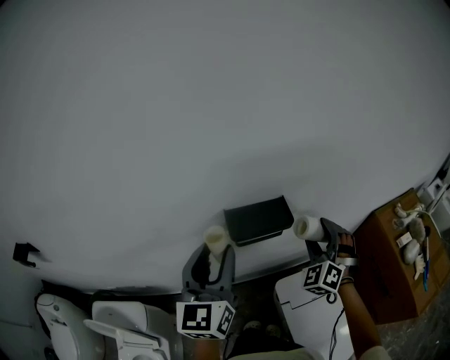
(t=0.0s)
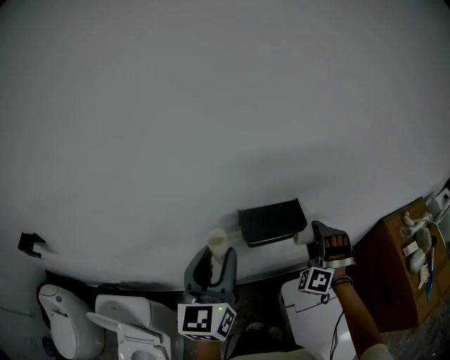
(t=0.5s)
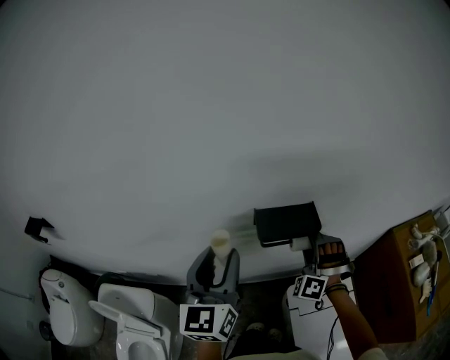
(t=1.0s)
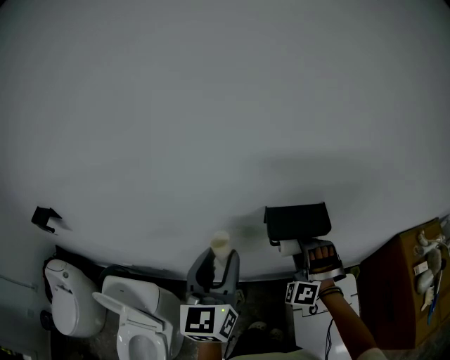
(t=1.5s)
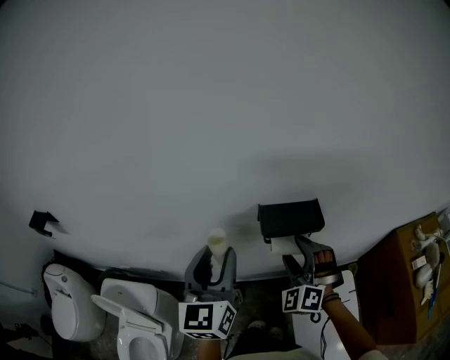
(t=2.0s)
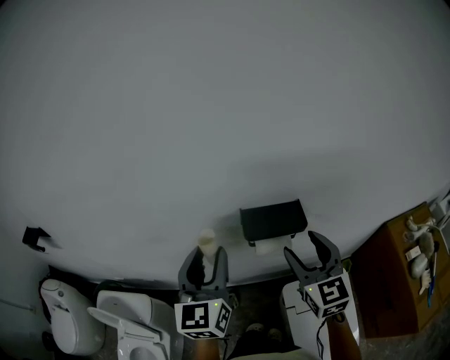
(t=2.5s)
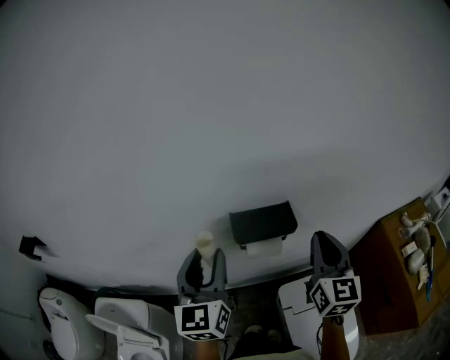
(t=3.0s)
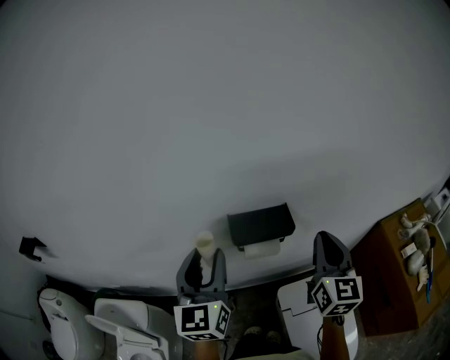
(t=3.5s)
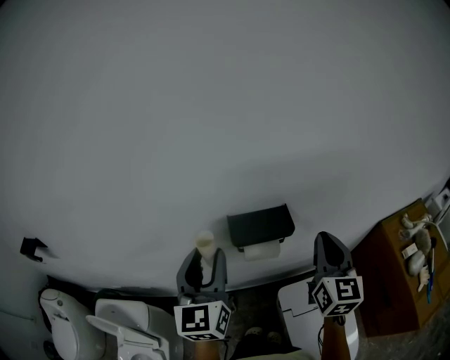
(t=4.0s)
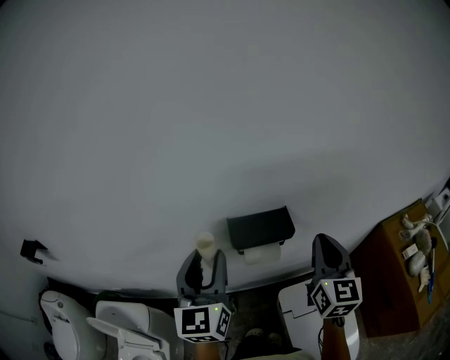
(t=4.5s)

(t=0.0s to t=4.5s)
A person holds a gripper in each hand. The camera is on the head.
t=0.0s - t=2.0s: The left gripper is displaced to the left by about 5 cm, while the right gripper is displaced to the left by some 15 cm, and rotates approximately 20 degrees.
t=2.0s - t=4.5s: The right gripper moves to the right and upward, roughly 20 cm, rolls clockwise, seen from behind, by some 70 degrees, and closes its fingers, while the left gripper moves about 5 cm.

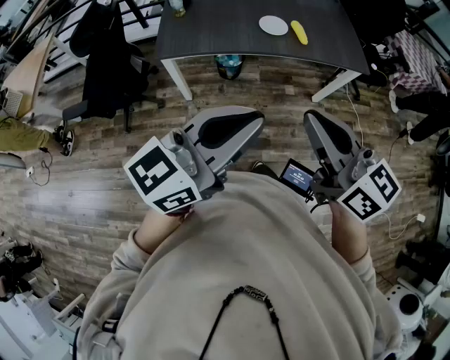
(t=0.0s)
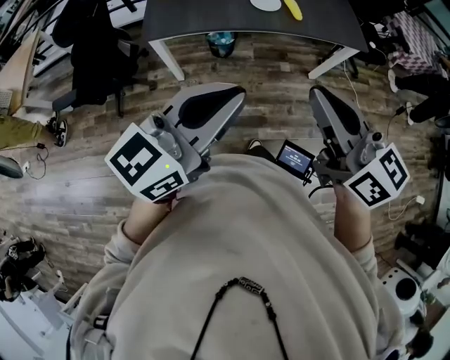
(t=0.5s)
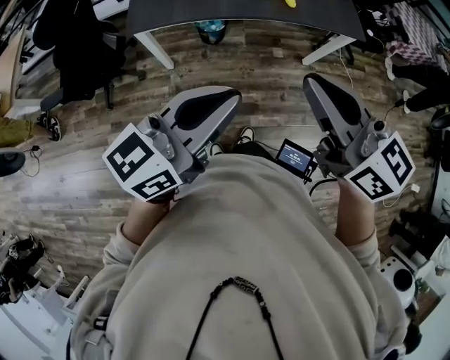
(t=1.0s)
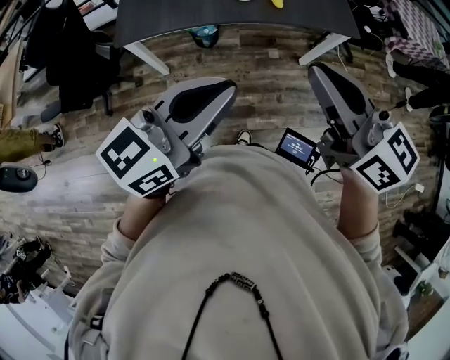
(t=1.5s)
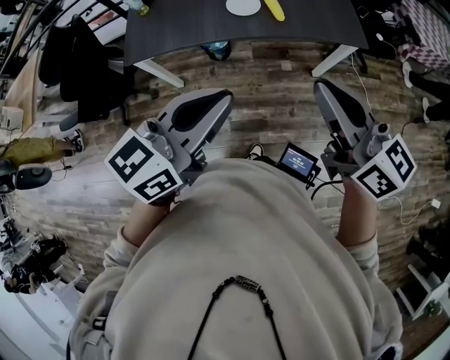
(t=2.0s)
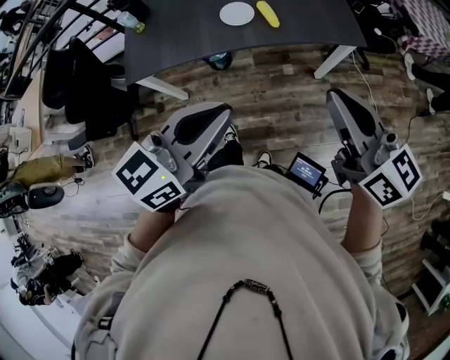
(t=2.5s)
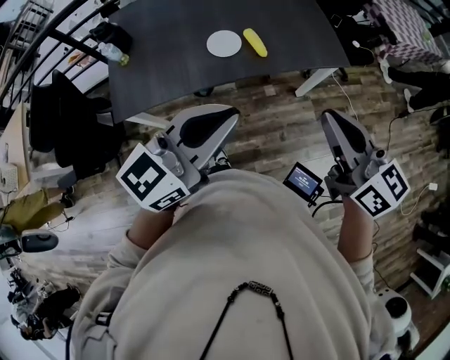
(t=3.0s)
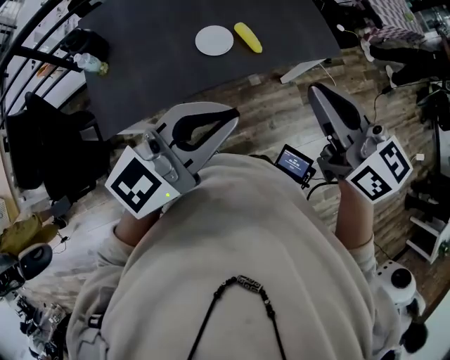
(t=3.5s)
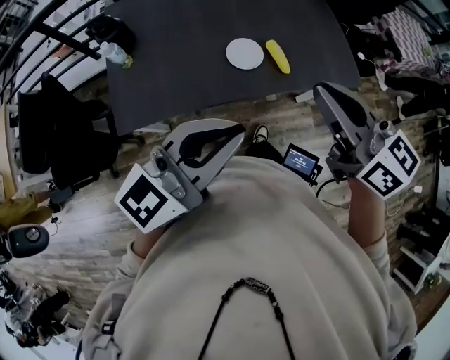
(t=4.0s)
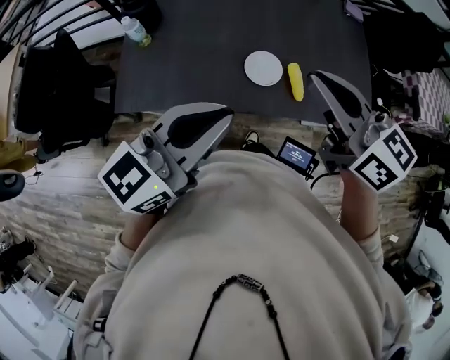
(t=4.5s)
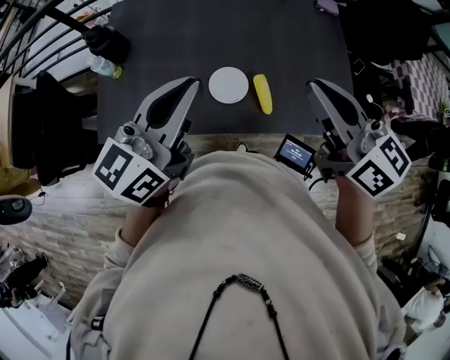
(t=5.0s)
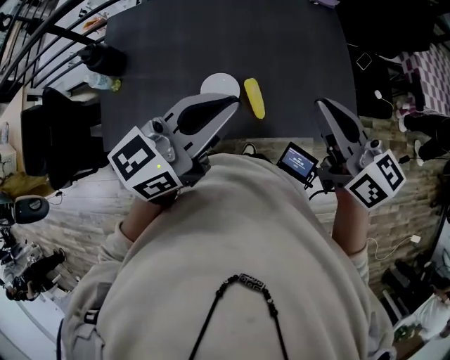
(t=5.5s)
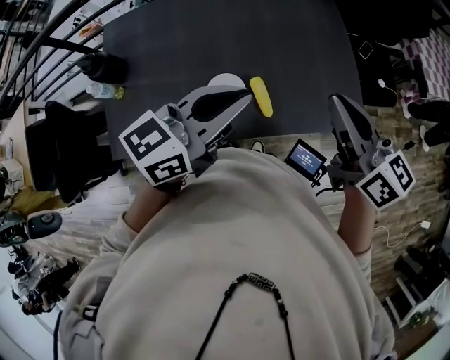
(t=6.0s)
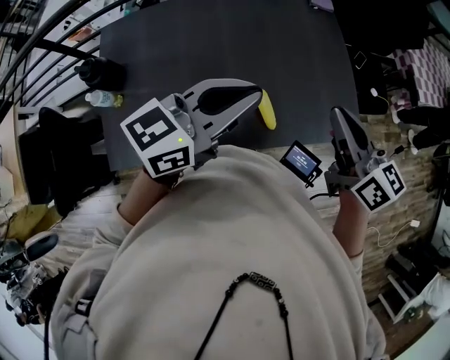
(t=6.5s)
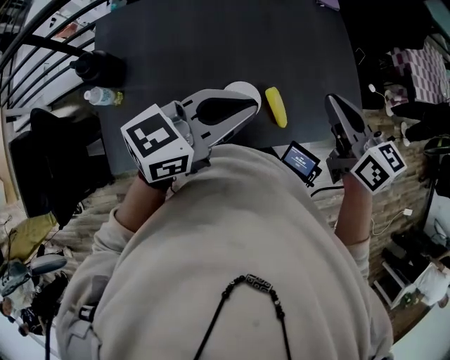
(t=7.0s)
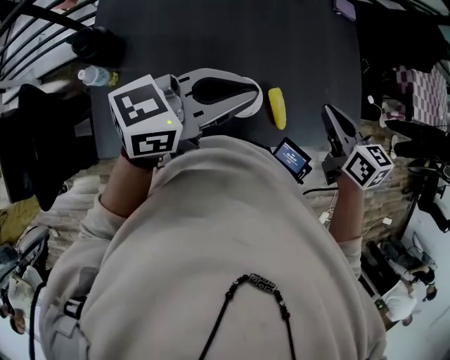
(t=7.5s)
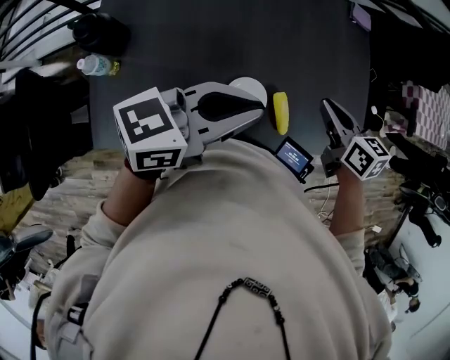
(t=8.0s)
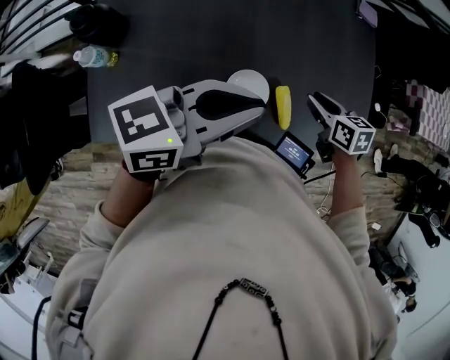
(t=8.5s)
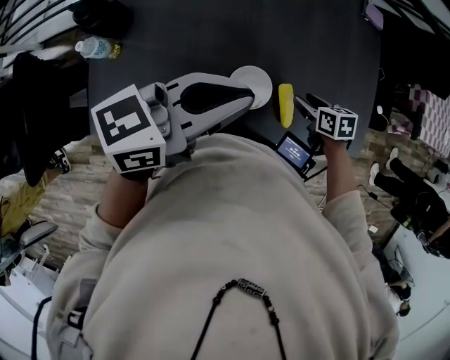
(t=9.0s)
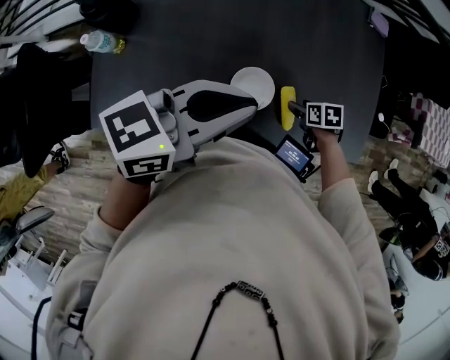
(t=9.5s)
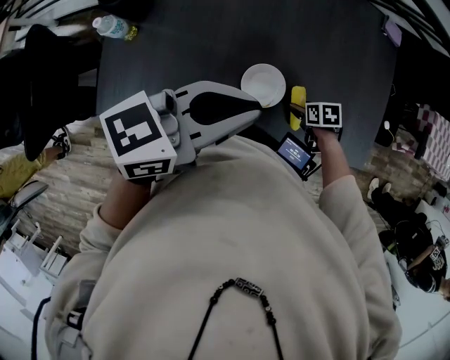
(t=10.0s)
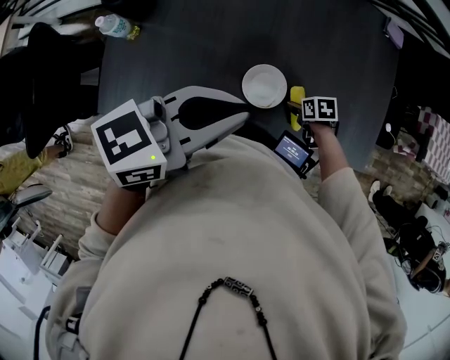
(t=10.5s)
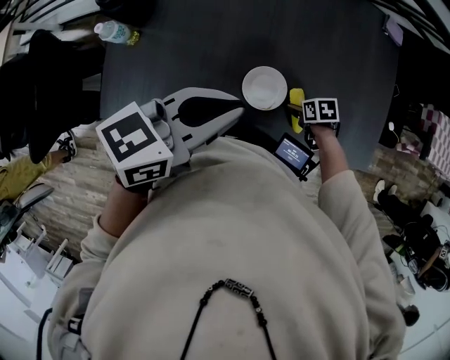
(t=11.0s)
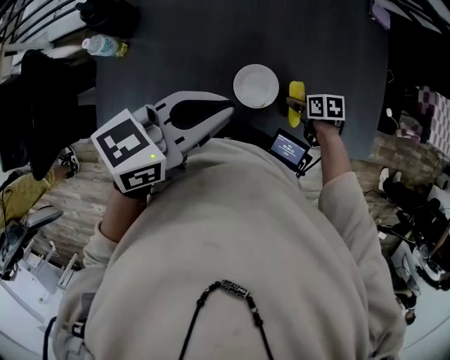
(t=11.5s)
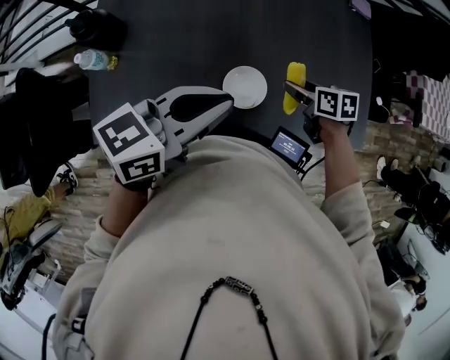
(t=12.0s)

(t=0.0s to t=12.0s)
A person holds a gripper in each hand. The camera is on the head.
t=0.0s - t=2.0s: The left gripper shifts some 15 cm forward and to the right, while the right gripper moves to the right and forward, about 20 cm.
t=2.0s - t=4.0s: The grippers both shift forward and to the left by roughly 25 cm.
t=4.0s - t=6.0s: Both grippers travel together forward and to the right, approximately 30 cm.
t=6.0s - t=8.0s: The left gripper travels to the left by about 15 cm. Meanwhile the right gripper goes about 25 cm downward, to the left and forward, and swivels about 30 degrees.
t=8.0s - t=10.0s: The right gripper travels downward by about 25 cm, tips its fingers downward by approximately 30 degrees, and opens.
t=10.0s - t=12.0s: The right gripper moves upward, about 15 cm, and turns by approximately 20 degrees.

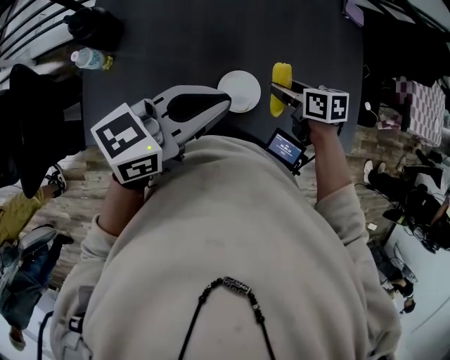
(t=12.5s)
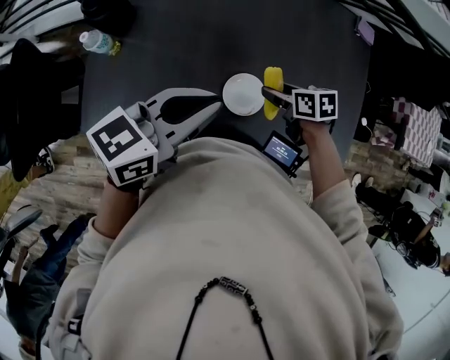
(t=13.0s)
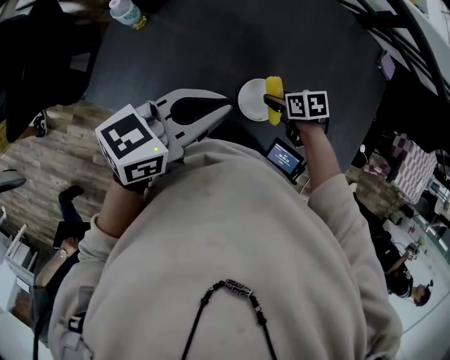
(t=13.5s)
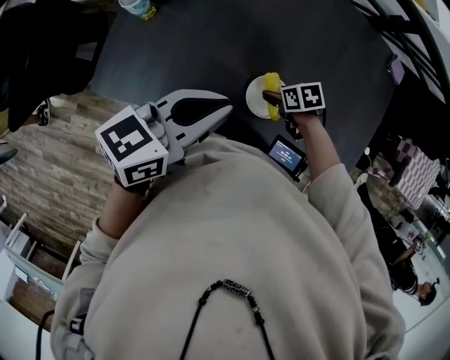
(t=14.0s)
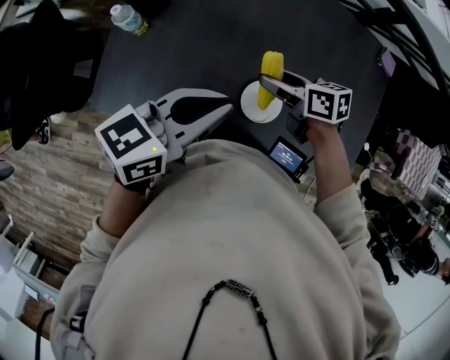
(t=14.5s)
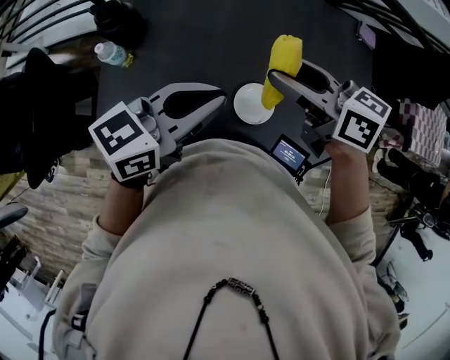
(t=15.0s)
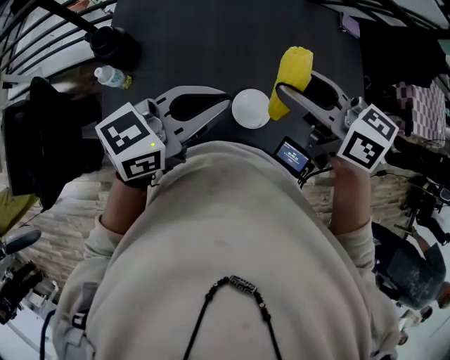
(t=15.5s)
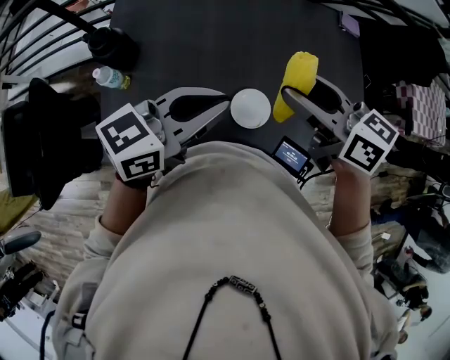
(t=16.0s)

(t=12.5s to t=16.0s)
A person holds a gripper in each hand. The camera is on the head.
t=12.5s - t=14.5s: The right gripper reaches some 10 cm downward, then returns, and changes its angle by some 20 degrees; the left gripper shifts by approximately 10 cm.
t=14.5s - t=16.0s: The right gripper is displaced upward by some 20 cm, and swivels some 30 degrees, while the left gripper changes place by some 5 cm.

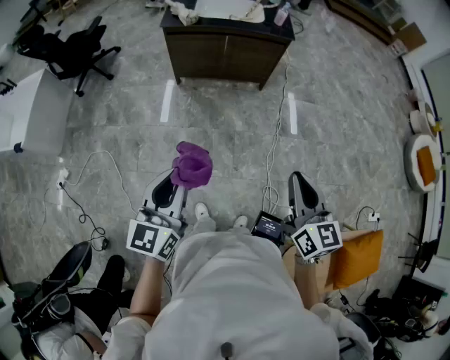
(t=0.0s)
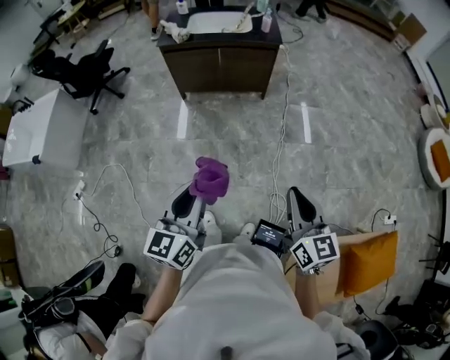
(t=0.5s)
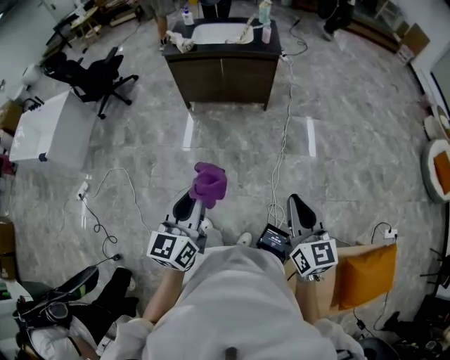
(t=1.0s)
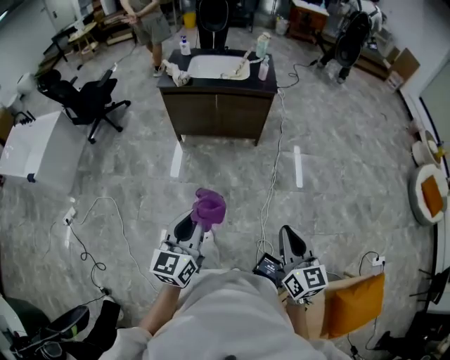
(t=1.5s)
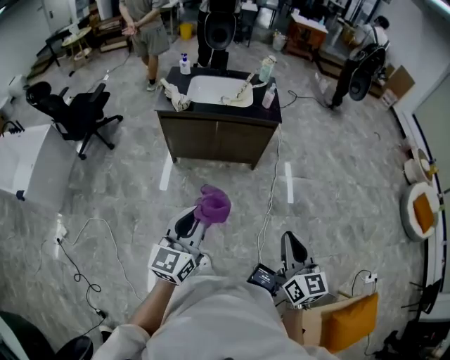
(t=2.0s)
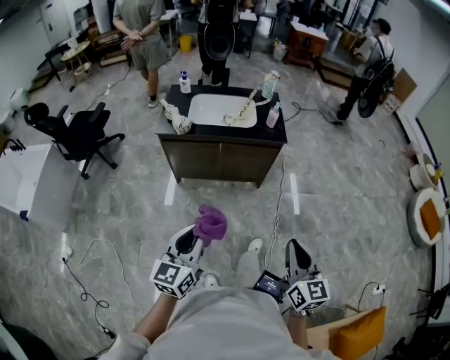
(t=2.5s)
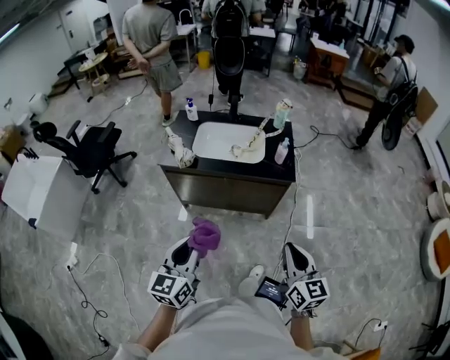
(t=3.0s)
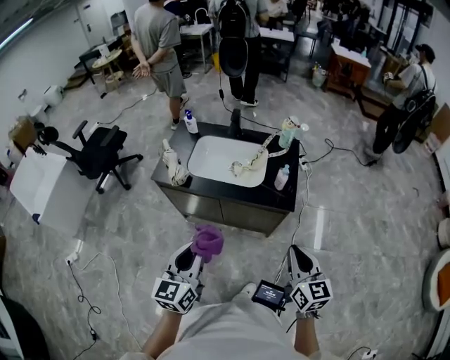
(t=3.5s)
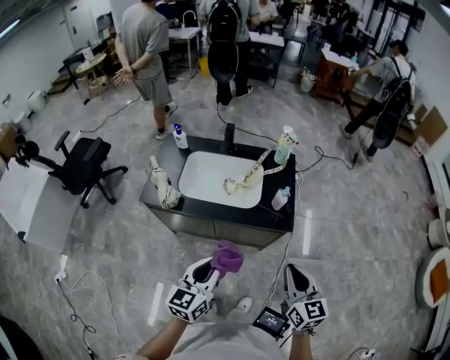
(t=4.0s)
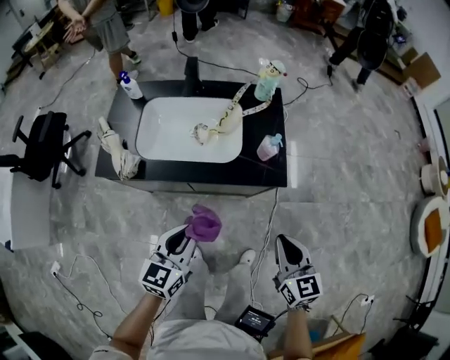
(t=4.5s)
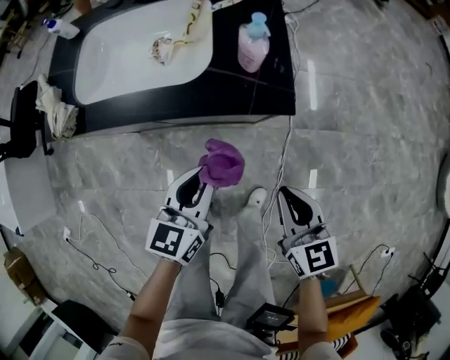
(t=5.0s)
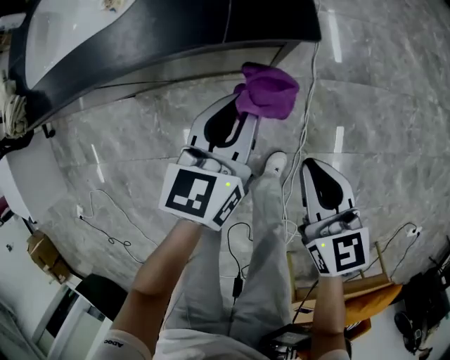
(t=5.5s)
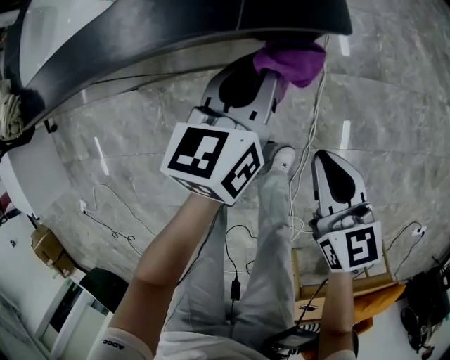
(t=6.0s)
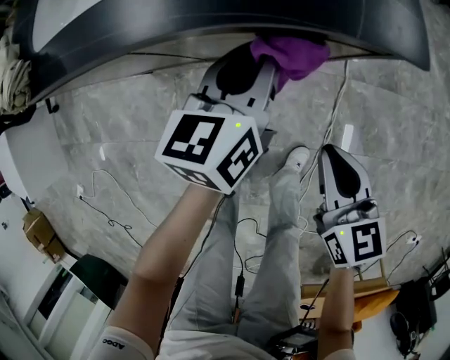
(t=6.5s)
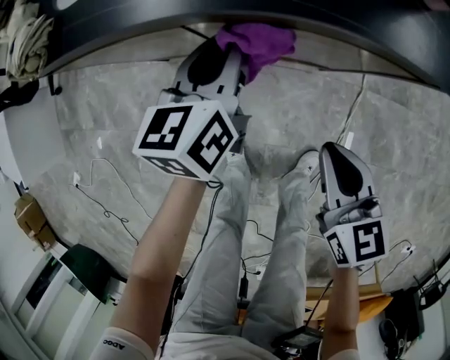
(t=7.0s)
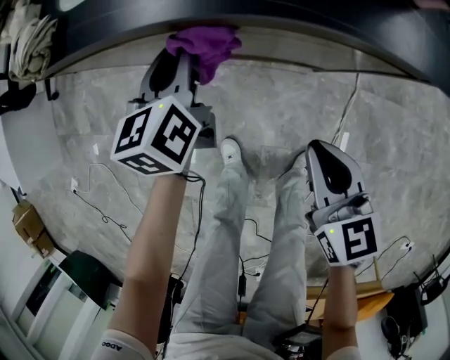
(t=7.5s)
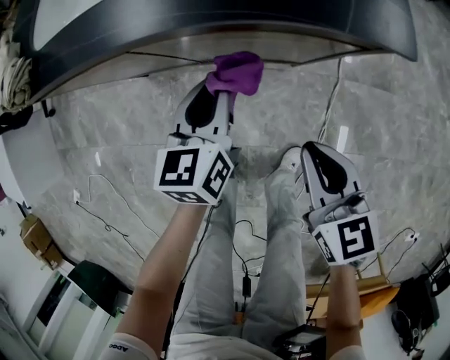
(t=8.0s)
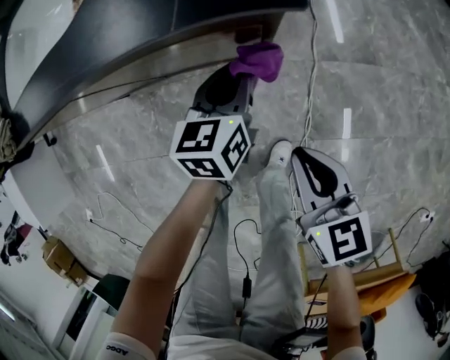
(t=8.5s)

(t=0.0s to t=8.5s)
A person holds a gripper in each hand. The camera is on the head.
t=0.0s - t=2.0s: The two grippers go approximately 20 cm forward and to the right.
t=2.0s - t=4.0s: The pair of grippers is taken forward, approximately 50 cm.
t=4.0s - t=6.5s: The right gripper moves downward, some 40 cm, and changes its angle by approximately 20 degrees. Meanwhile the left gripper goes roughly 50 cm downward and forward.
t=6.5s - t=8.5s: The left gripper shifts roughly 10 cm downward, and goes to the left and returns, approximately 20 cm each way. The right gripper goes some 5 cm to the right.
